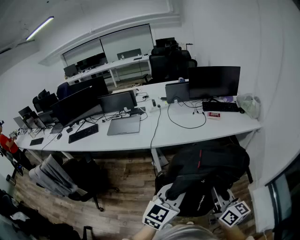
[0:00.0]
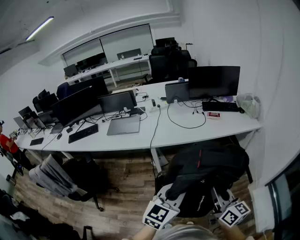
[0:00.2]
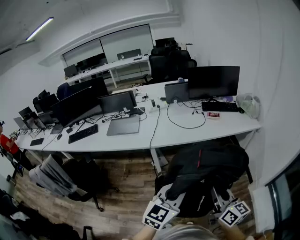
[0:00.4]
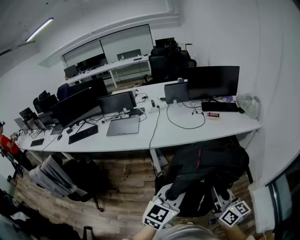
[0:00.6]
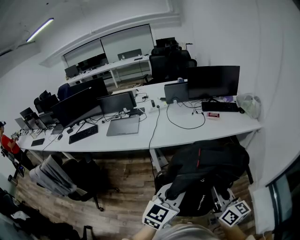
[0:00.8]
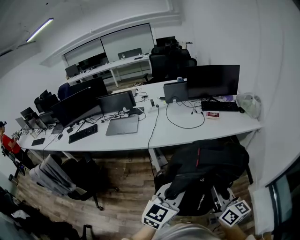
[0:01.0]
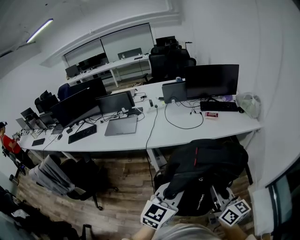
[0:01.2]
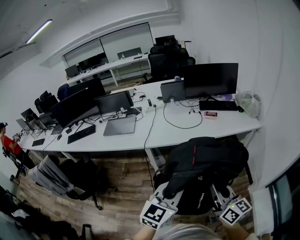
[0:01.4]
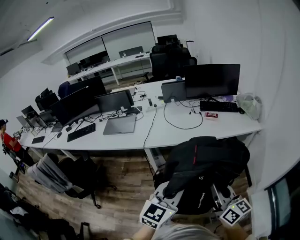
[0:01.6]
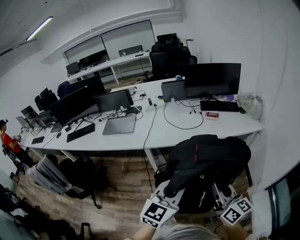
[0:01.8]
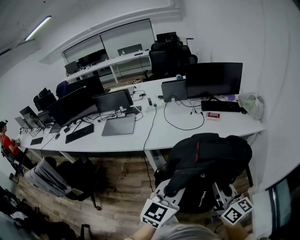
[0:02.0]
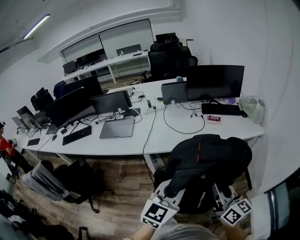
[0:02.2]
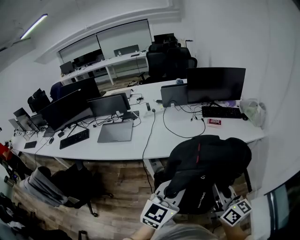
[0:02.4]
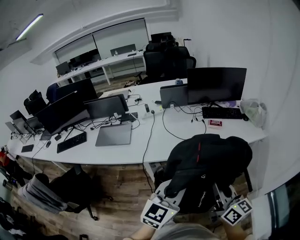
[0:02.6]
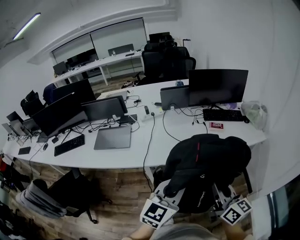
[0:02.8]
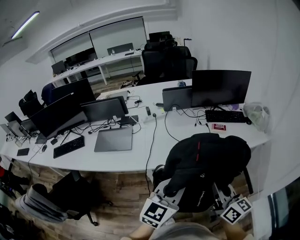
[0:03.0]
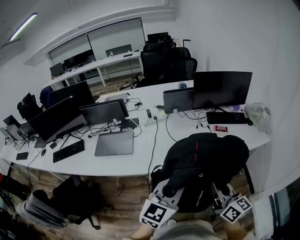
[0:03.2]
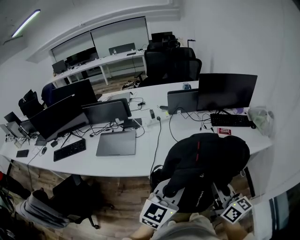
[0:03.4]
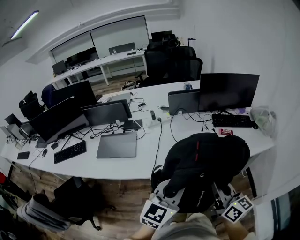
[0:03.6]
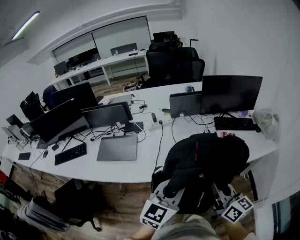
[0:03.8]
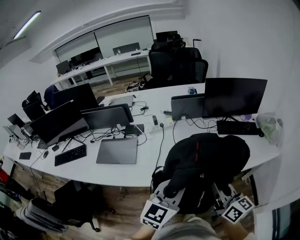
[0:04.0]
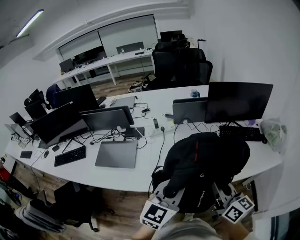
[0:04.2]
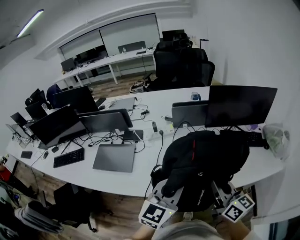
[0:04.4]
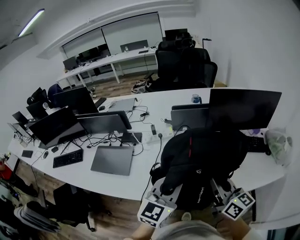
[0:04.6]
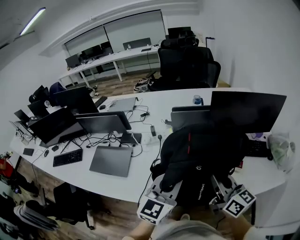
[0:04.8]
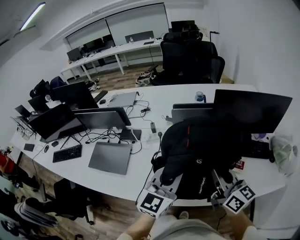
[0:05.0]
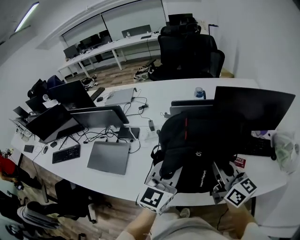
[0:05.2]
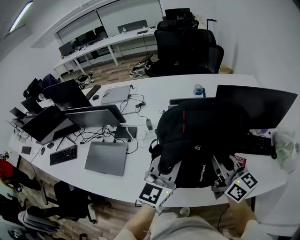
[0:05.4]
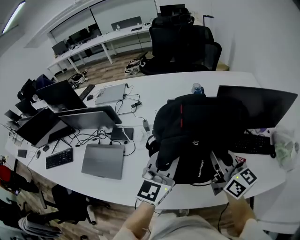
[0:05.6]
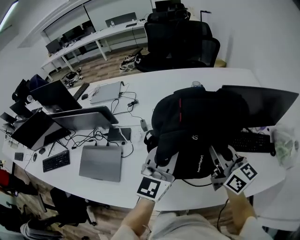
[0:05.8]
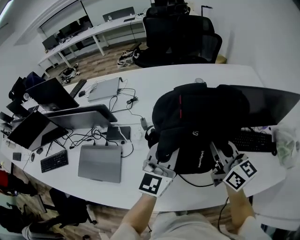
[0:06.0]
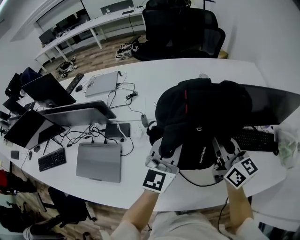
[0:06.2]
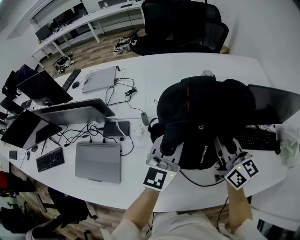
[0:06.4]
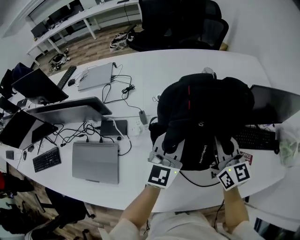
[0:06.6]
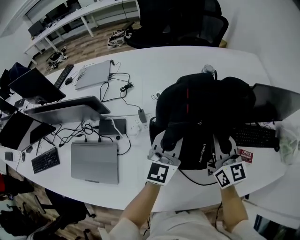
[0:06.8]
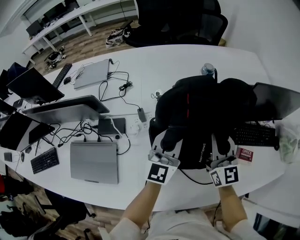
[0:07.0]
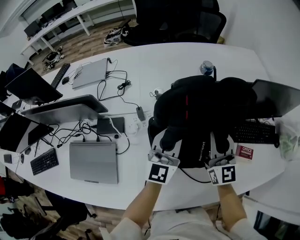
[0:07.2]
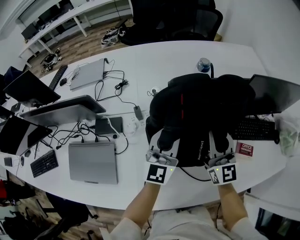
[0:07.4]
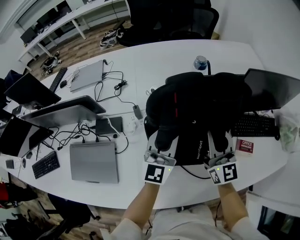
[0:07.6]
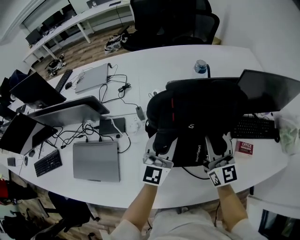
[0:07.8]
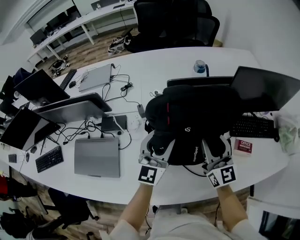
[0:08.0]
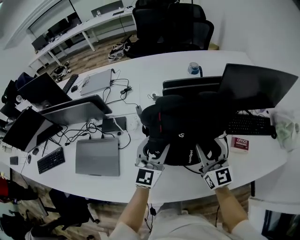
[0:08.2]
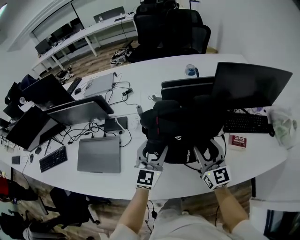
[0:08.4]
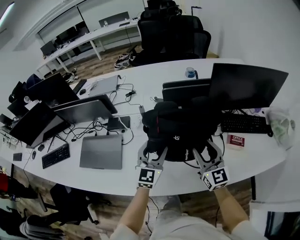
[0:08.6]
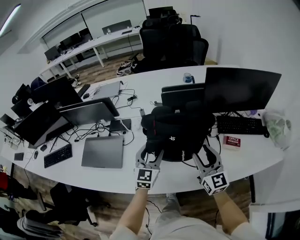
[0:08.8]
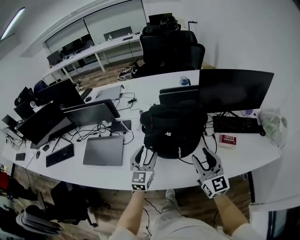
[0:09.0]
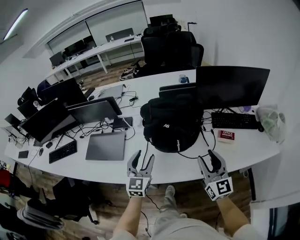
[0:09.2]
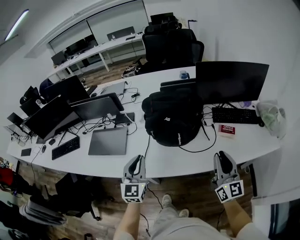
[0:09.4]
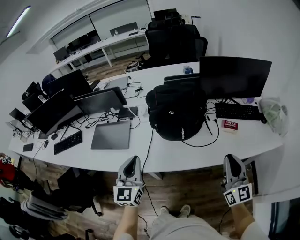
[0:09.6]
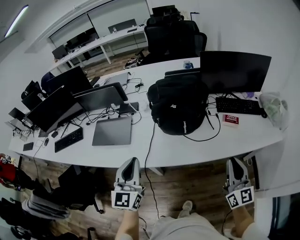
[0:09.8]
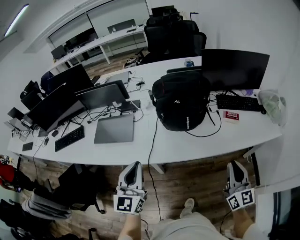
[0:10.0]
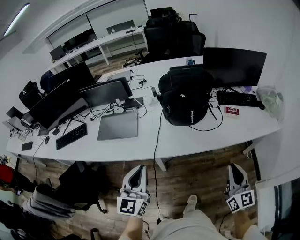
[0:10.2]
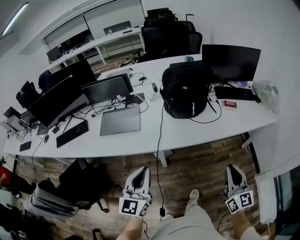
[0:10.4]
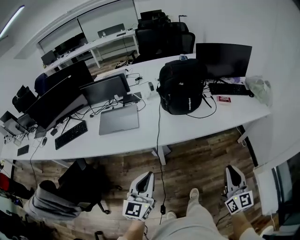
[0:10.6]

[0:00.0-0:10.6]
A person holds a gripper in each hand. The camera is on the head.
0:00.0 to 0:01.6: The right gripper goes roughly 10 cm to the right and forward, while the left gripper goes about 5 cm to the right.
0:01.6 to 0:03.0: The two grippers go roughly 25 cm forward and to the left.
0:03.0 to 0:04.6: The two grippers go about 30 cm forward.
0:04.6 to 0:06.0: The grippers both shift forward by approximately 30 cm.
0:06.0 to 0:07.6: Both grippers travel together downward and forward, some 10 cm. The right gripper turns by roughly 30 degrees.
0:07.6 to 0:09.0: The two grippers go roughly 25 cm backward. The left gripper opens its fingers, while the right gripper opens its fingers.
0:09.0 to 0:10.6: Both grippers are carried backward, approximately 50 cm. The left gripper closes its fingers. Meanwhile the right gripper closes its fingers.

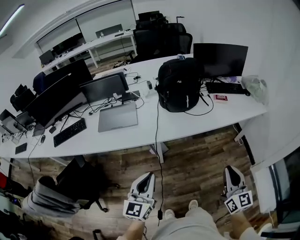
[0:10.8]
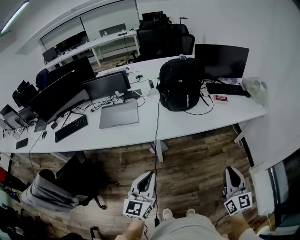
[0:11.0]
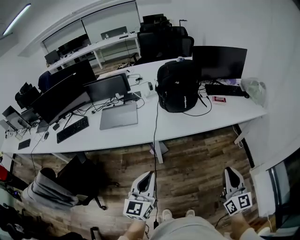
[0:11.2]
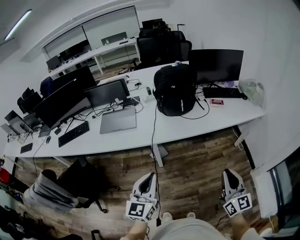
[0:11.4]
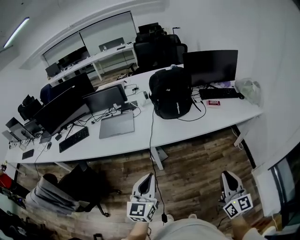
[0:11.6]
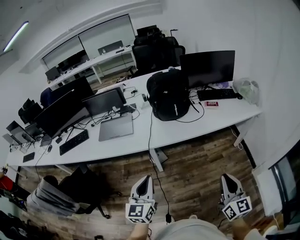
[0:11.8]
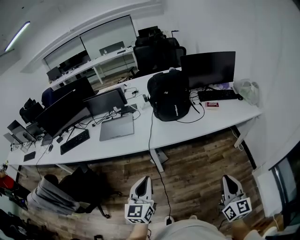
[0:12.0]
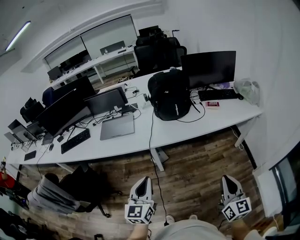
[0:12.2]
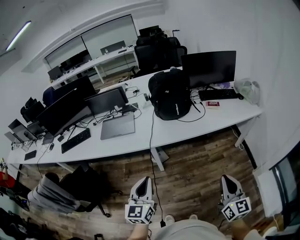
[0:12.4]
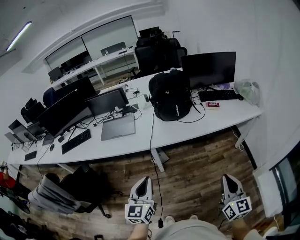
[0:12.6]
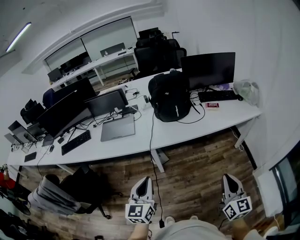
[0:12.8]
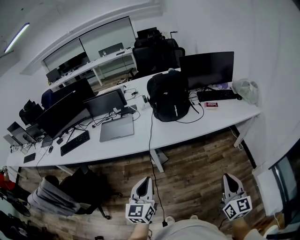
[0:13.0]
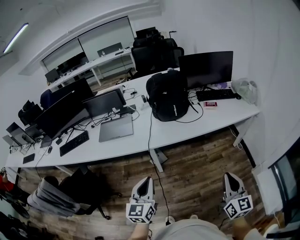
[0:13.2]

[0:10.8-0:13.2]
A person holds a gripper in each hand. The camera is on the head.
0:10.8 to 0:12.0: The right gripper heads to the right and backward, covering roughly 10 cm. Meanwhile the left gripper heads to the right, covering roughly 10 cm.
0:12.0 to 0:13.2: Both grippers stay about where they are.

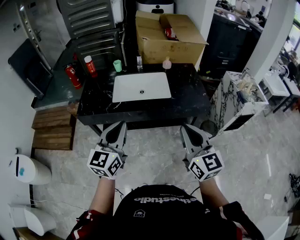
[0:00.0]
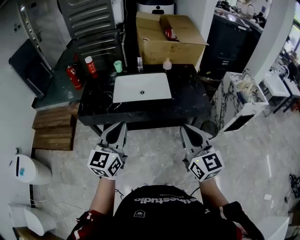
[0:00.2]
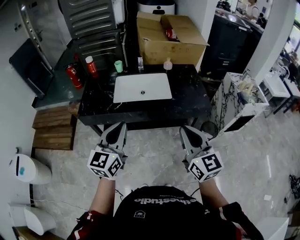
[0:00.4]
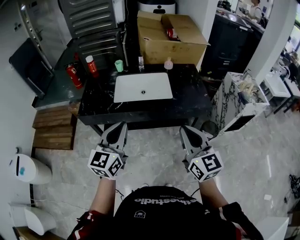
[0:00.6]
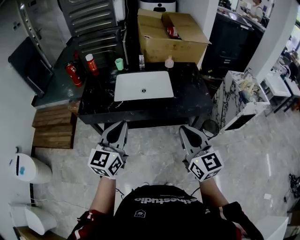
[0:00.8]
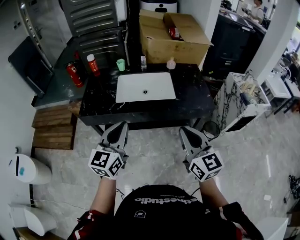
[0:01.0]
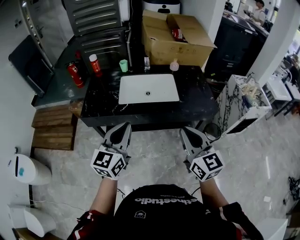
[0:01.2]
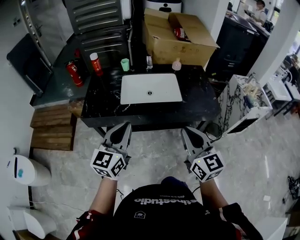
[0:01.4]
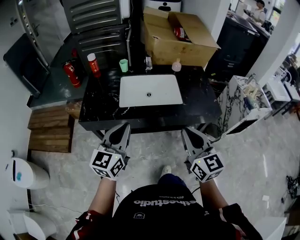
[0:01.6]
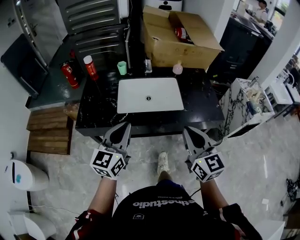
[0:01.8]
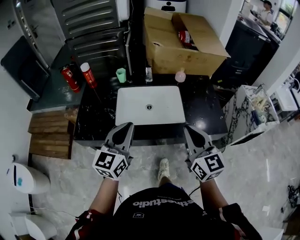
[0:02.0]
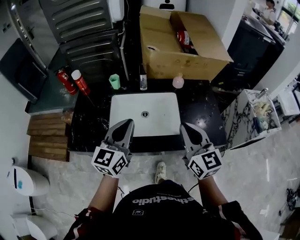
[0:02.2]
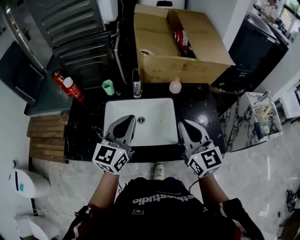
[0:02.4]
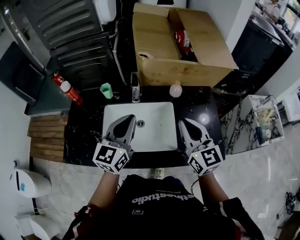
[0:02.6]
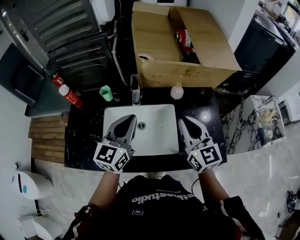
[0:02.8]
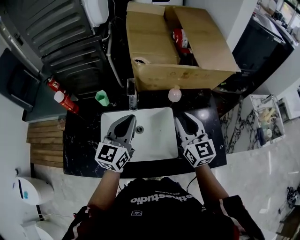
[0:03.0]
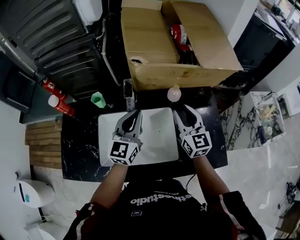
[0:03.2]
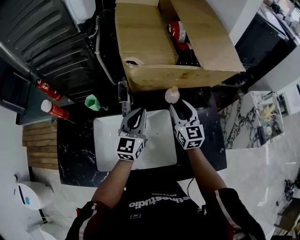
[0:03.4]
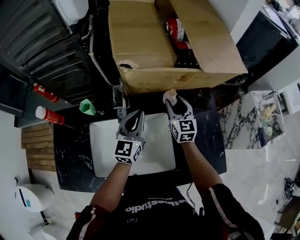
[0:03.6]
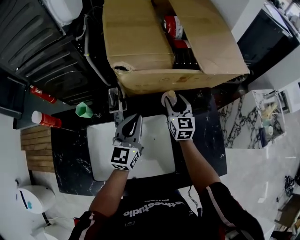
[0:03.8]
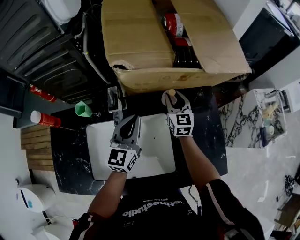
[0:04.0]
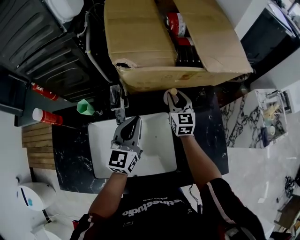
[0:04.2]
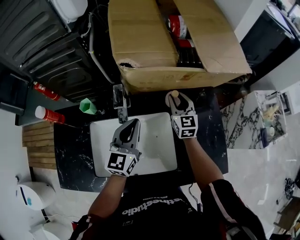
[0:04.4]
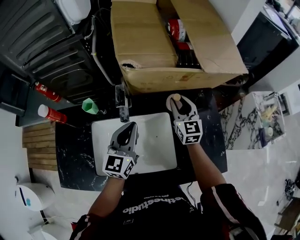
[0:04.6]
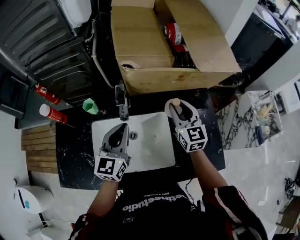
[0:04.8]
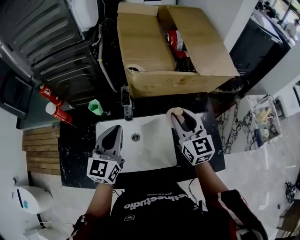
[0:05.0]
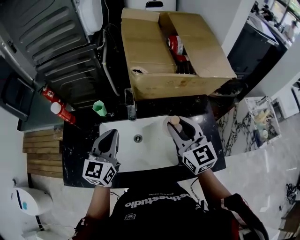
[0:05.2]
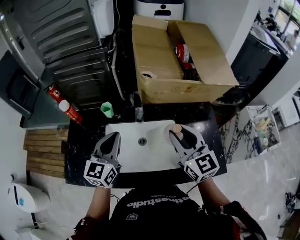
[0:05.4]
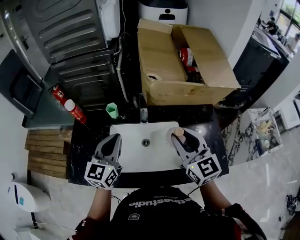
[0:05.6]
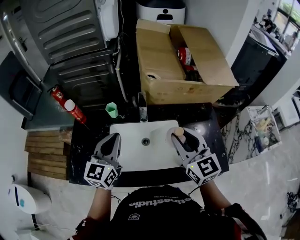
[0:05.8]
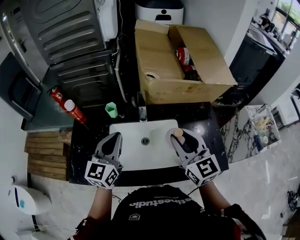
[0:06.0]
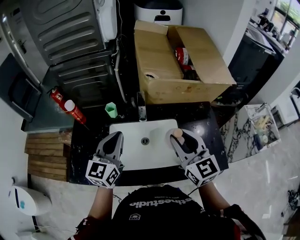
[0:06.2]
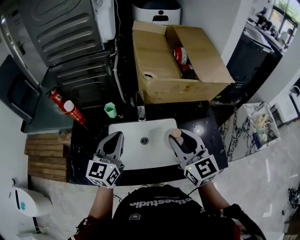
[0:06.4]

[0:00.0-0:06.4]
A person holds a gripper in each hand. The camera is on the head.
0:00.0 to 0:01.6: The left gripper is displaced forward and to the left by roughly 10 cm. The right gripper heads to the left and forward, covering approximately 10 cm.
0:01.6 to 0:03.2: The two grippers travel together, forward, about 50 cm. The right gripper opens.
0:03.2 to 0:04.8: The right gripper goes roughly 5 cm forward. Meanwhile the left gripper travels forward and back again, approximately 10 cm each way.
0:04.8 to 0:06.4: The left gripper is displaced to the left, backward and upward by some 15 cm. The right gripper heads backward, upward and to the left, covering approximately 25 cm.

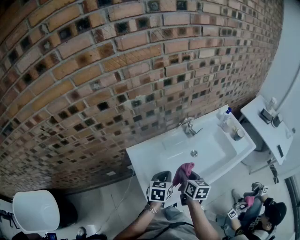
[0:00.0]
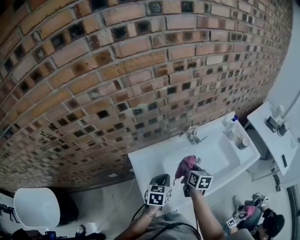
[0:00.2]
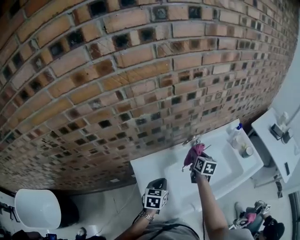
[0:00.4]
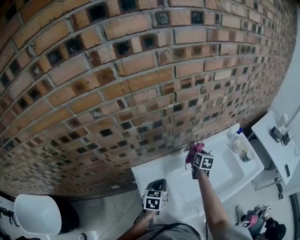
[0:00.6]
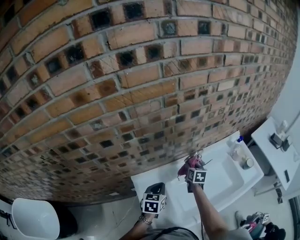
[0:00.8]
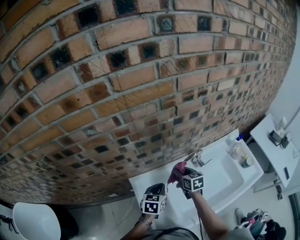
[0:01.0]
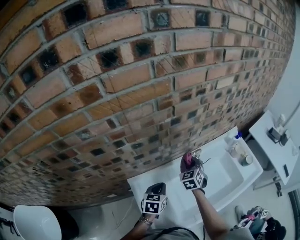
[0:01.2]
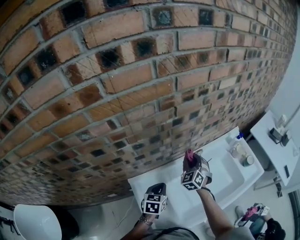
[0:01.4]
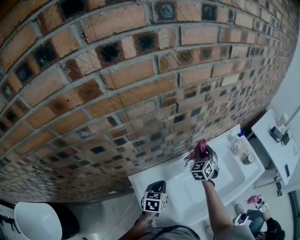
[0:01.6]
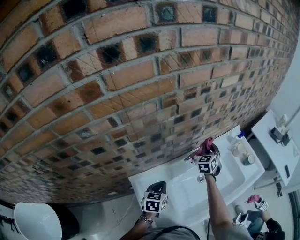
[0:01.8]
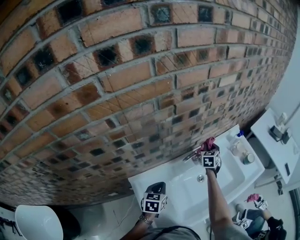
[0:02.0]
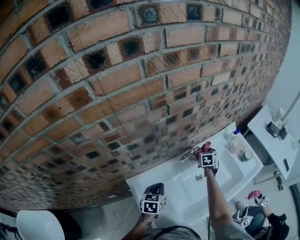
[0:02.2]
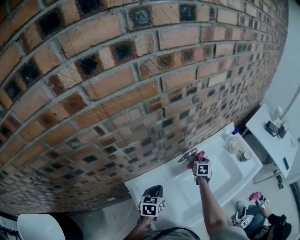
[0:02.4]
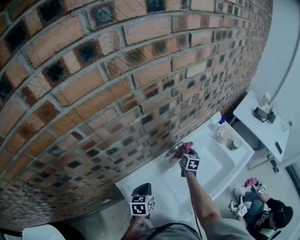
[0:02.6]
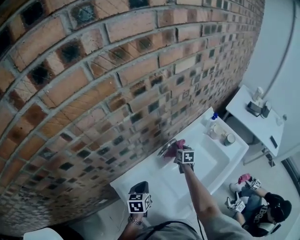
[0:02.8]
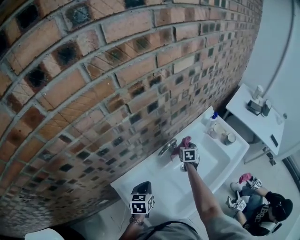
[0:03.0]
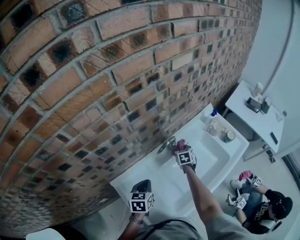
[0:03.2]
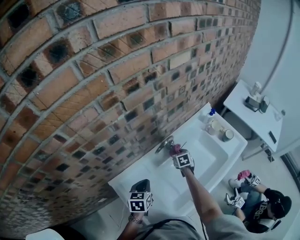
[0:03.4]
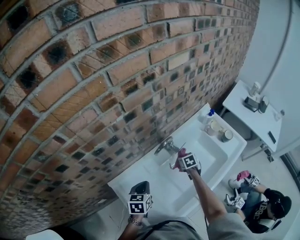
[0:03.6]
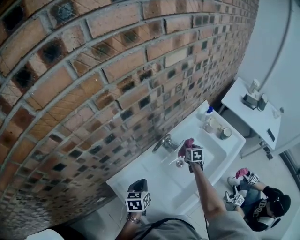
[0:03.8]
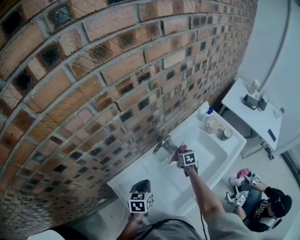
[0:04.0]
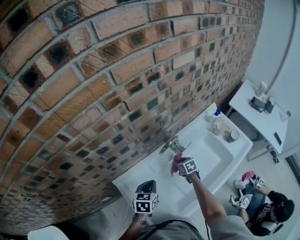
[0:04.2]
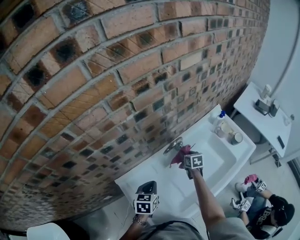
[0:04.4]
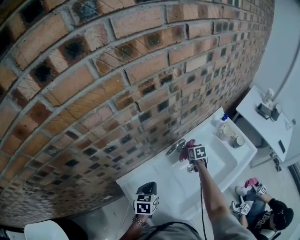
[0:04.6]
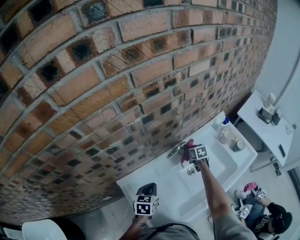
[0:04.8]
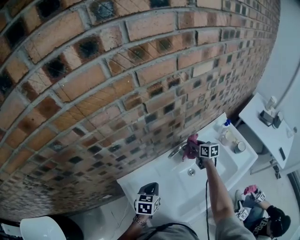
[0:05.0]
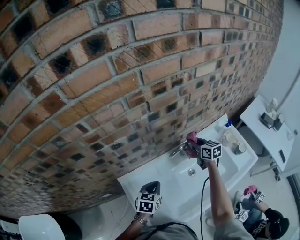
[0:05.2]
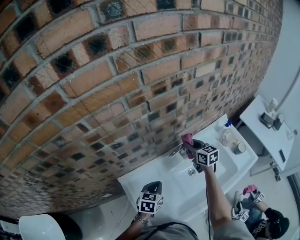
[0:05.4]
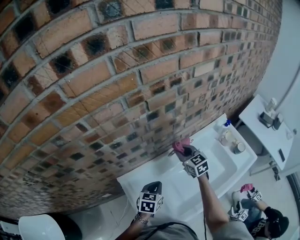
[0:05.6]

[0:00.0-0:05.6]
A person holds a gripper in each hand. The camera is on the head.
0:00.0 to 0:01.4: The right gripper goes forward and backward, approximately 30 cm each way, reversing 2 times, and rotates around the line of its fingers by approximately 70 degrees, counterclockwise from behind. Meanwhile the left gripper goes some 15 cm forward.
0:01.4 to 0:02.8: The right gripper travels downward, to the right and forward by approximately 20 cm, and rolls clockwise, seen from behind, by roughly 60 degrees.
0:02.8 to 0:04.2: The right gripper goes approximately 10 cm backward and downward, moves approximately 10 cm to the right and comes back, and rotates some 20 degrees.
0:04.2 to 0:05.6: The right gripper travels upward by approximately 25 cm, and swivels approximately 40 degrees.
